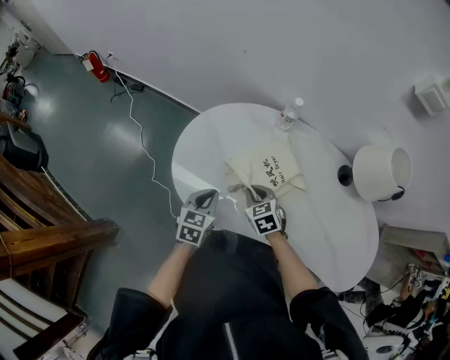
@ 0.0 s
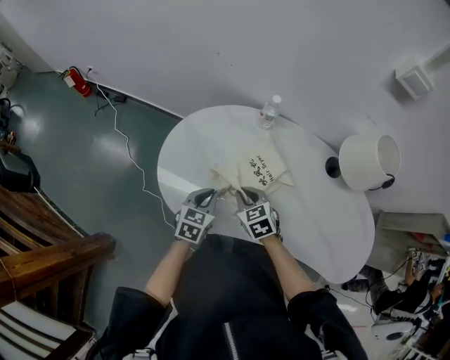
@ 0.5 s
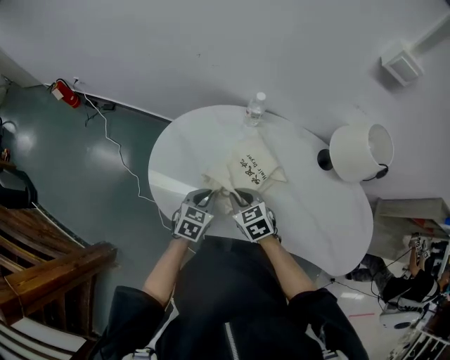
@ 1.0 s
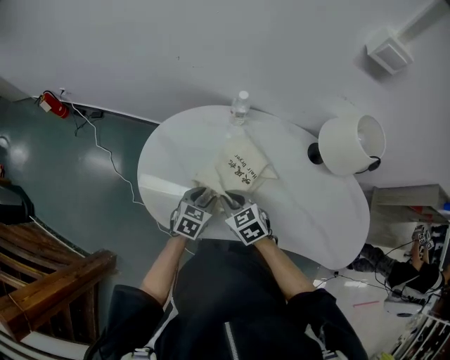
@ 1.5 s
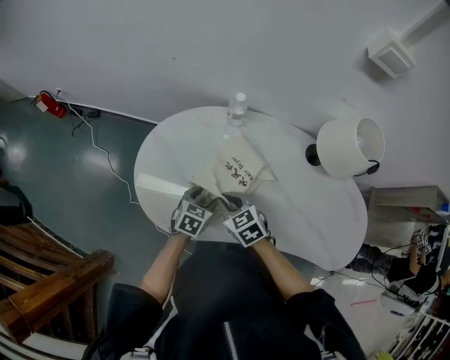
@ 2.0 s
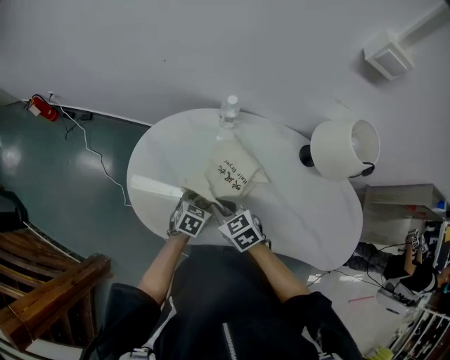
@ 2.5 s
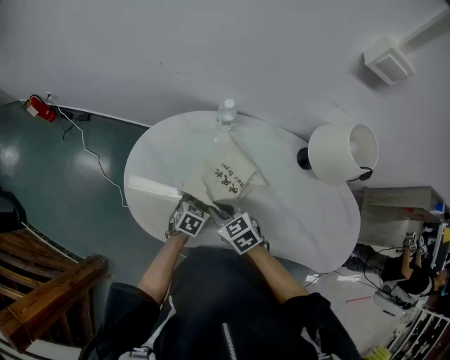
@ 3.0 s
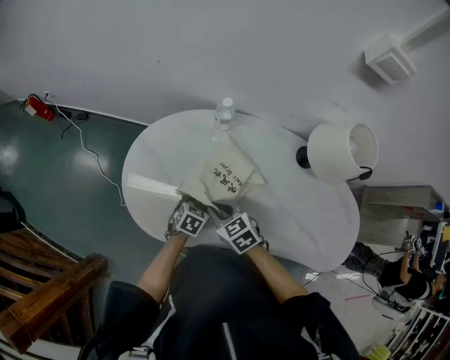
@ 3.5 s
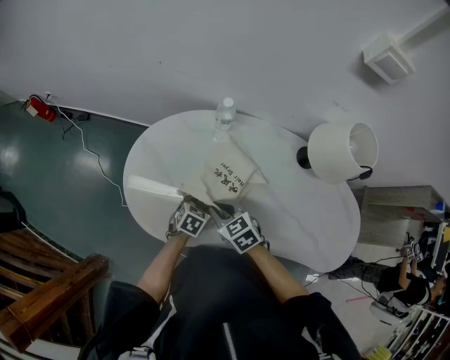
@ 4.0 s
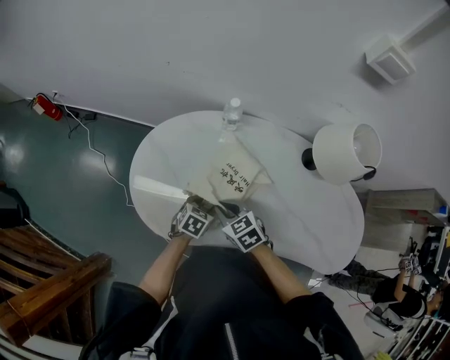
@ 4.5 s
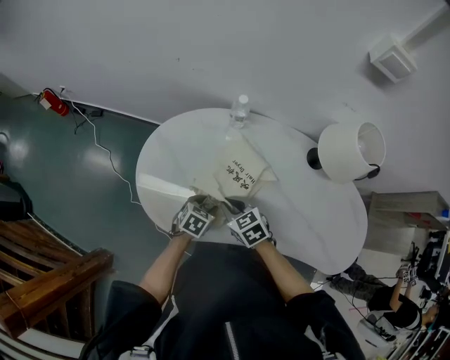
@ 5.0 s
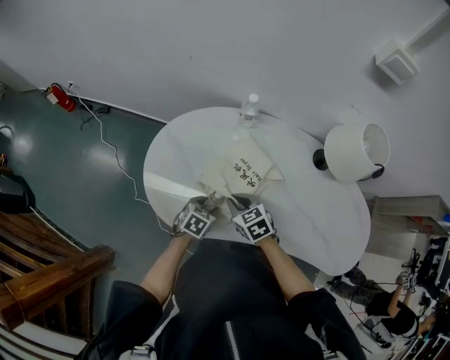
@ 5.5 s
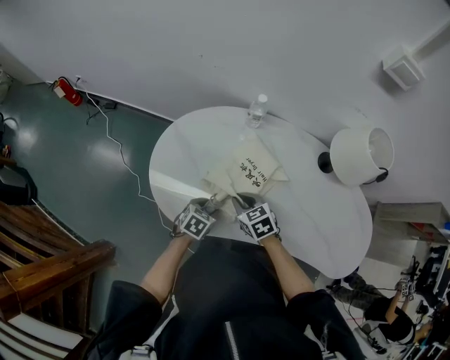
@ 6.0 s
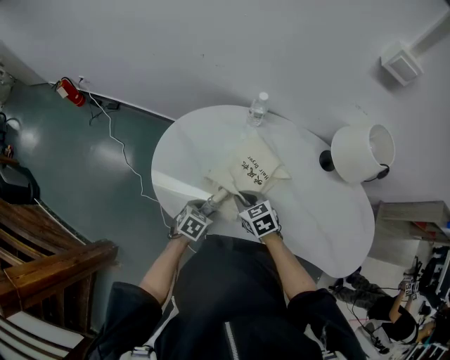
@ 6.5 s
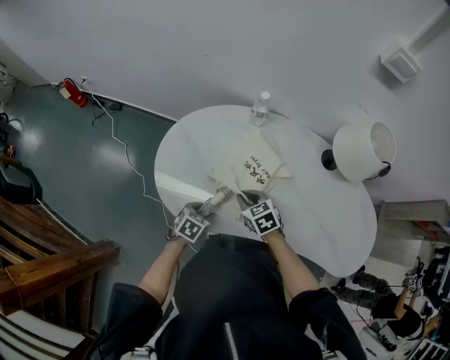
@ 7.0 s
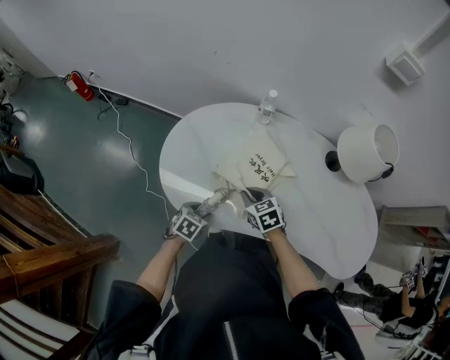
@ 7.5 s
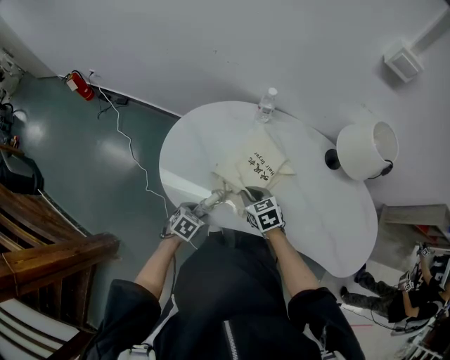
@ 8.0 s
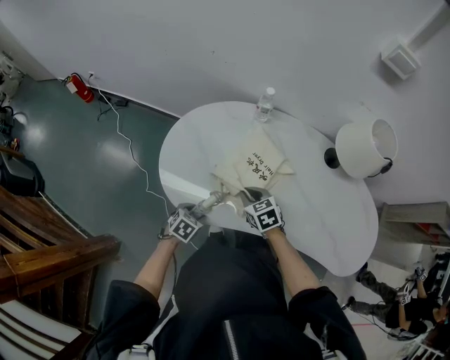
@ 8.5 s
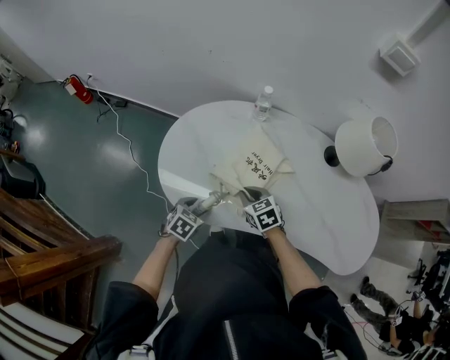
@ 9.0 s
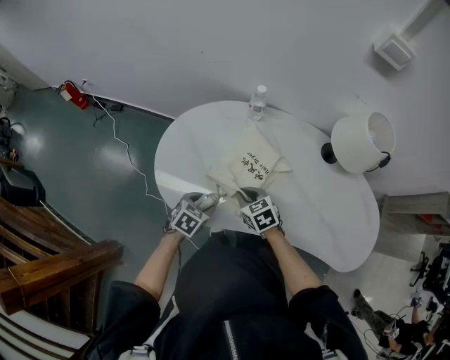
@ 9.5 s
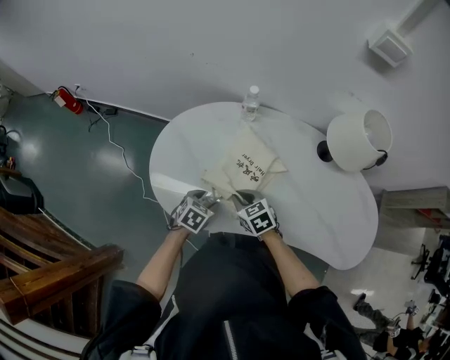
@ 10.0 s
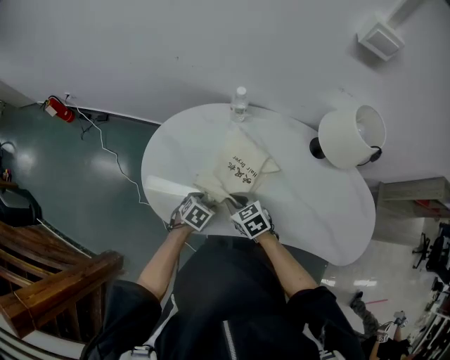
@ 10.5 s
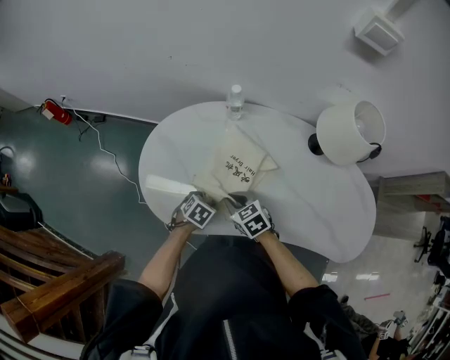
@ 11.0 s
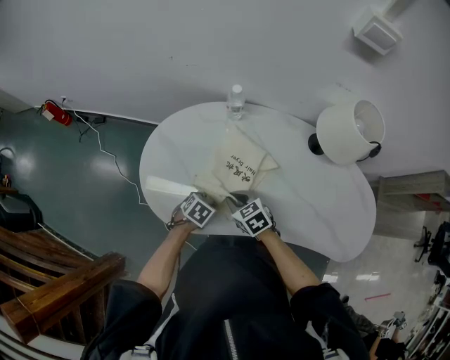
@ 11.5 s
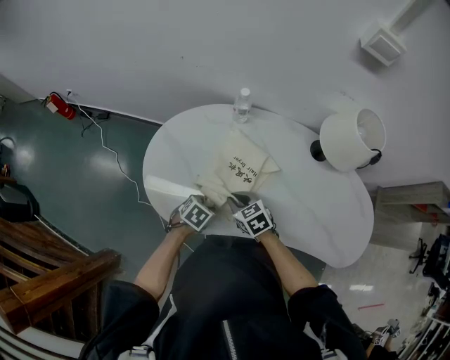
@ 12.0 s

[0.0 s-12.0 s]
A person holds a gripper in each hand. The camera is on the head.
0.0 to 2.0 s: The left gripper moves to the right and downward, approximately 15 cm, changes its angle by approximately 20 degrees, and opens.
2.0 to 4.0 s: The left gripper ends up about 5 cm from where it was.
4.0 to 6.0 s: The left gripper heads to the left and backward, covering about 10 cm.
6.0 to 8.0 s: The left gripper goes approximately 10 cm backward and to the left.
8.0 to 10.0 s: The left gripper goes roughly 10 cm forward and to the right.
10.0 to 12.0 s: The grippers move only a little.

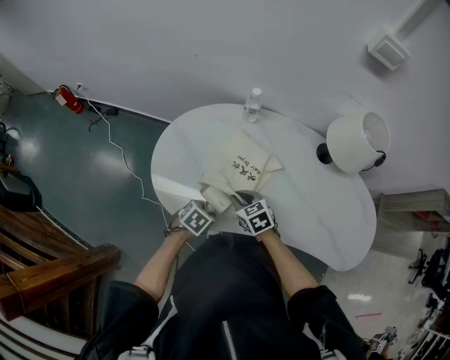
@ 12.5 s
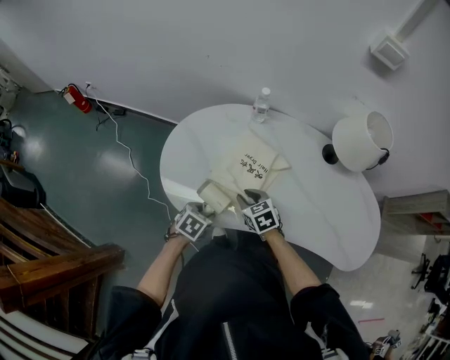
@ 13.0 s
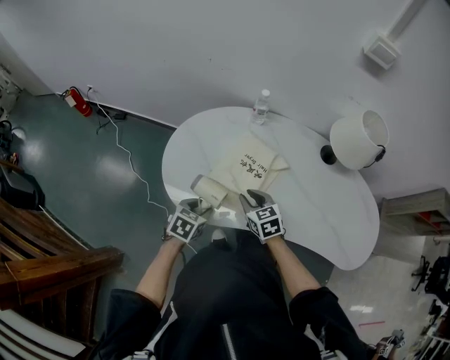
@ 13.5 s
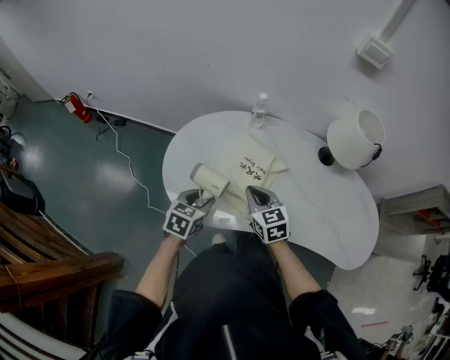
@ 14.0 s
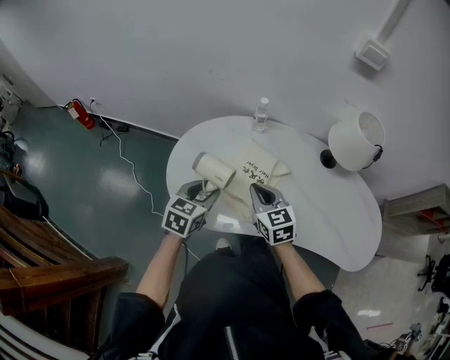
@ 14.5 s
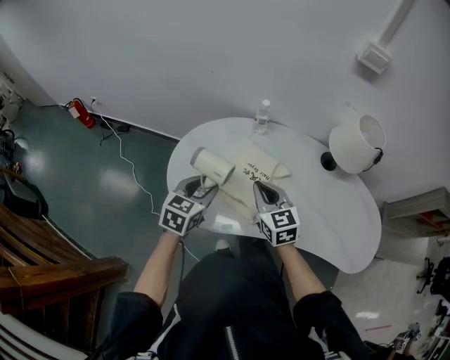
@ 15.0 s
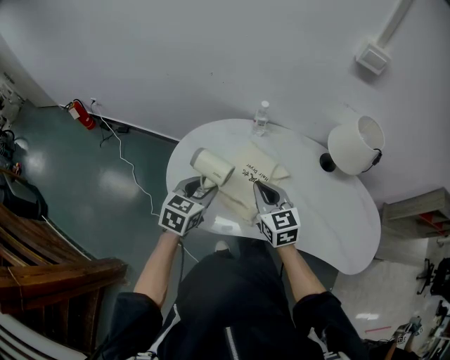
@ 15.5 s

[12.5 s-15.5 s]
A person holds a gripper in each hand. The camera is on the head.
12.5 to 14.0 s: Both grippers travel together upward, about 10 cm. The right gripper changes its angle by about 20 degrees. Meanwhile the left gripper turns by about 30 degrees.
14.0 to 15.5 s: The grippers both shift upward by about 5 cm.

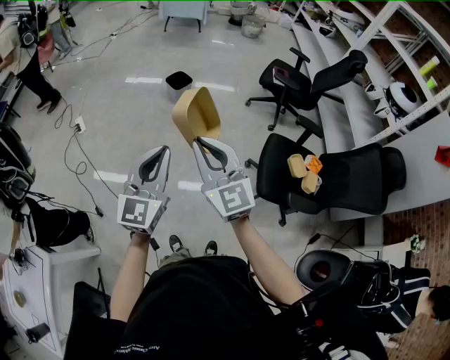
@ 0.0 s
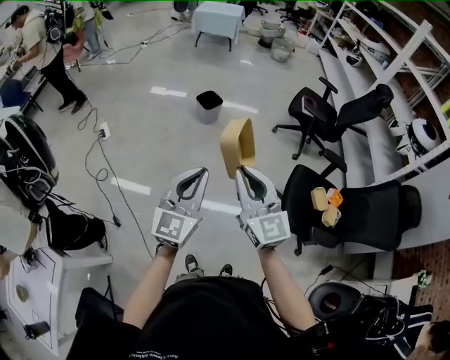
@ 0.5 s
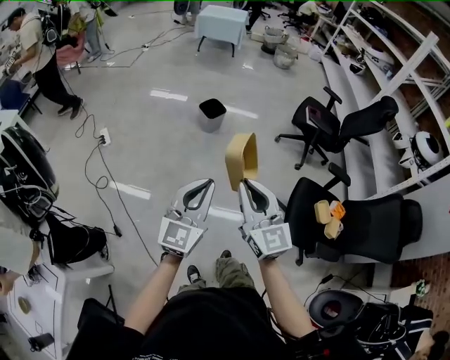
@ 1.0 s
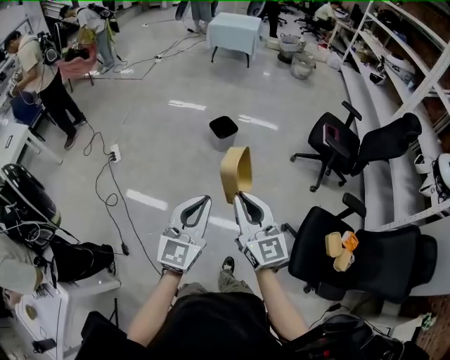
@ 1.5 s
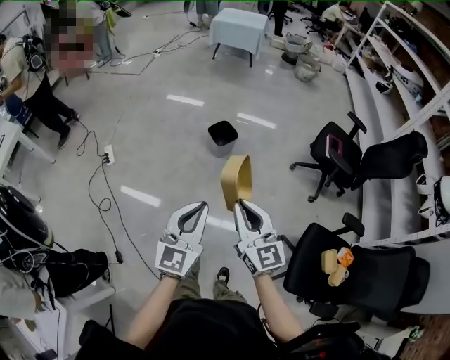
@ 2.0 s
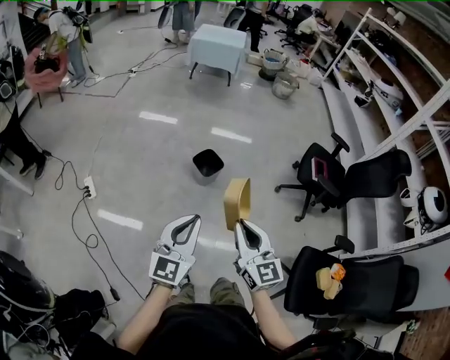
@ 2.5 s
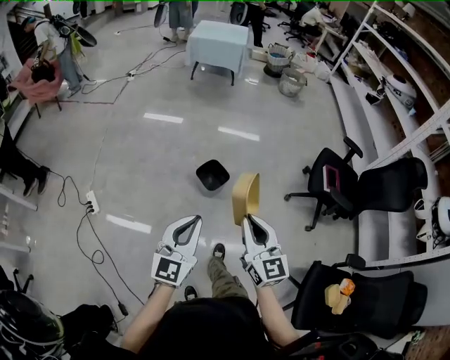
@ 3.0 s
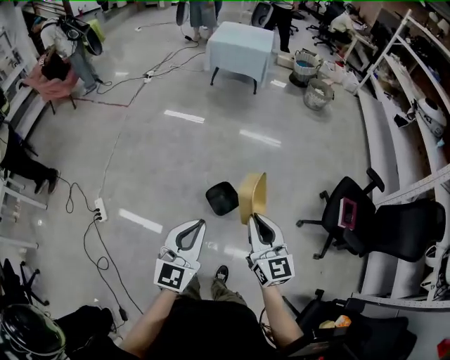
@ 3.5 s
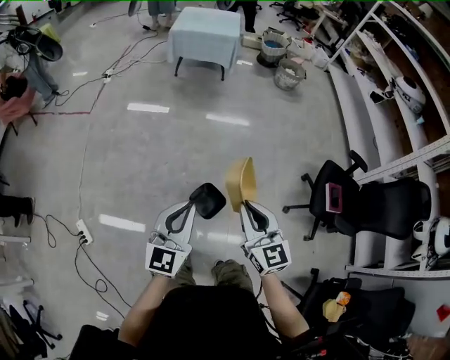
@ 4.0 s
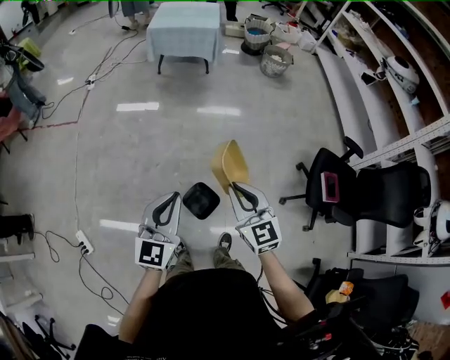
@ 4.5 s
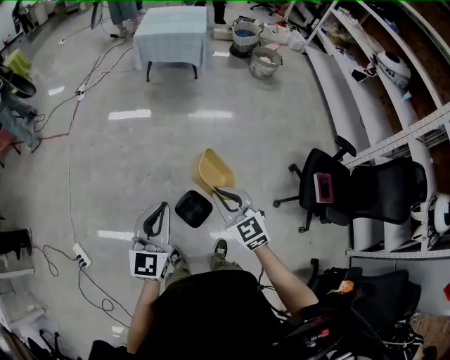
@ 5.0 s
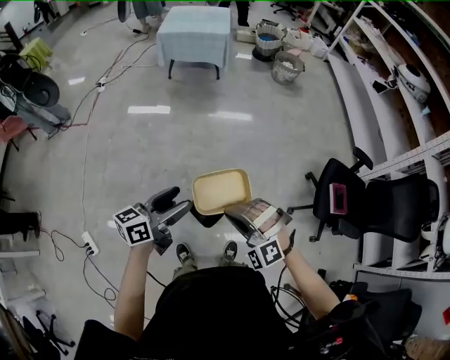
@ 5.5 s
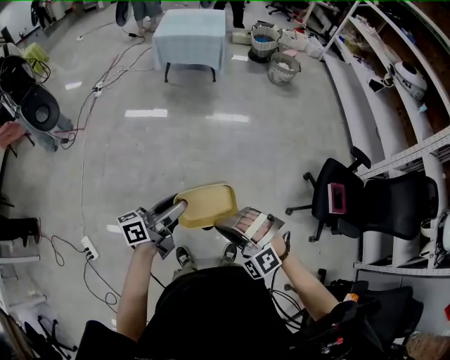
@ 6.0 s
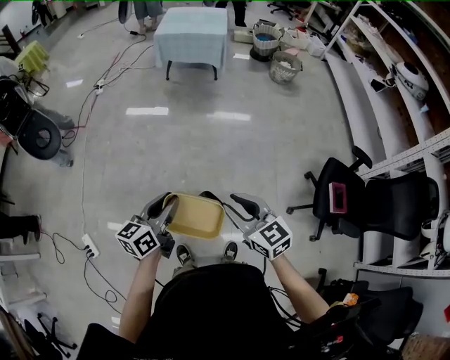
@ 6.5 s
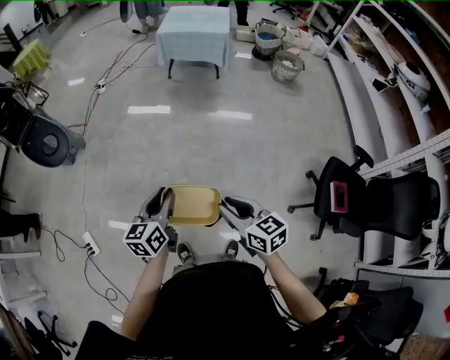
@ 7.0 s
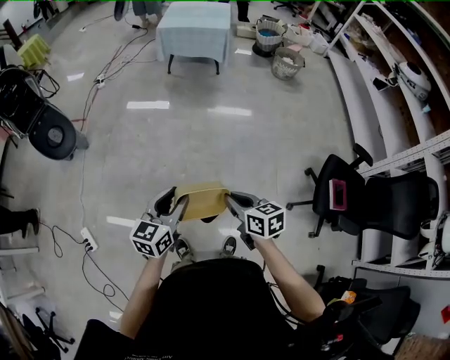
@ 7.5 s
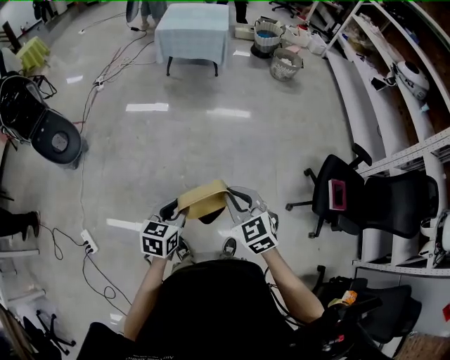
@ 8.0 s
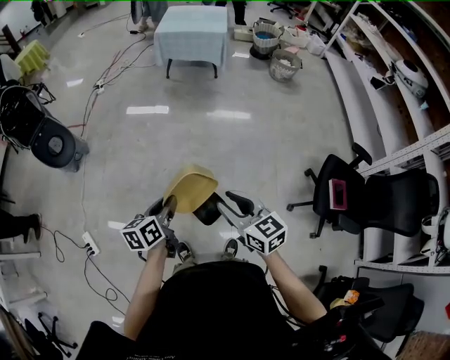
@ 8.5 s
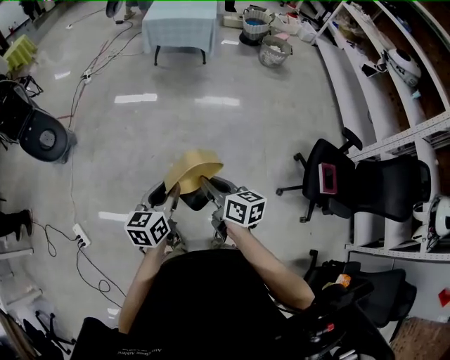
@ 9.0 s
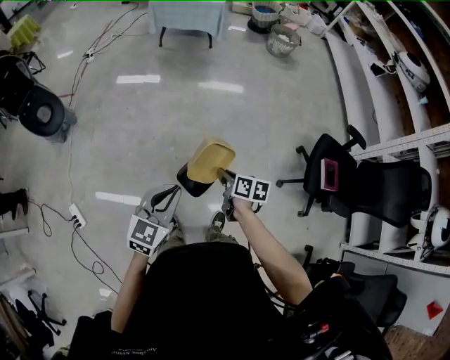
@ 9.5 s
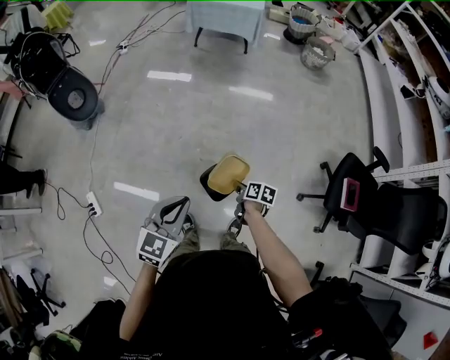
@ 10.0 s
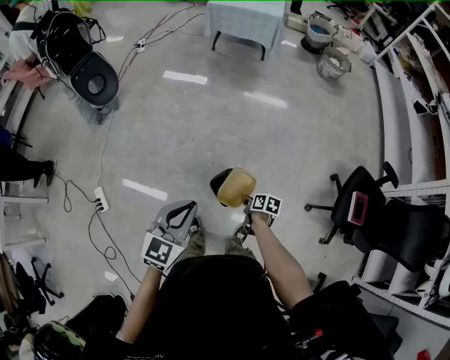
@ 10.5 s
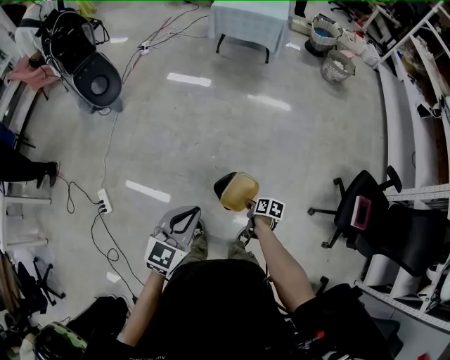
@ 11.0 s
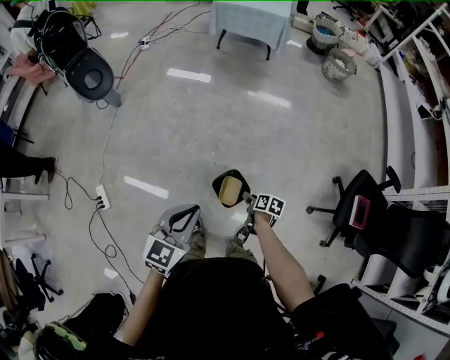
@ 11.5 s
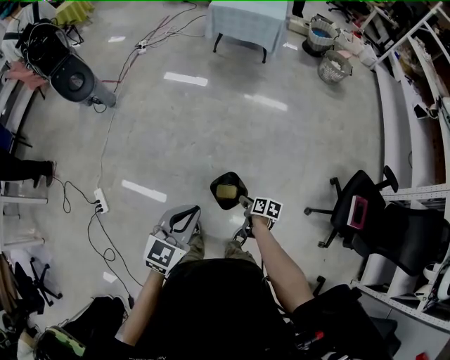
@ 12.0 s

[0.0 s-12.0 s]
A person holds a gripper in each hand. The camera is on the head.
0.0 to 2.0 s: Both grippers move forward, about 35 cm.
2.0 to 4.0 s: The two grippers travel together, forward, approximately 70 cm.
4.0 to 6.0 s: The right gripper moves downward, about 10 cm, reaches about 10 cm forward, then returns, and twists roughly 70 degrees counterclockwise, seen from behind. Meanwhile the left gripper moves forward and downward, some 15 cm, rolls counterclockwise, seen from behind, by some 50 degrees, and opens its fingers.
6.0 to 8.0 s: The right gripper shifts roughly 10 cm forward, rolls clockwise, seen from behind, by approximately 60 degrees, and opens, then closes again. Meanwhile the left gripper is displaced downward by about 10 cm, and tips its fingers downward by about 30 degrees.
8.0 to 10.0 s: The right gripper travels downward by about 30 cm, rolls clockwise, seen from behind, by roughly 70 degrees, and opens, then closes again. Meanwhile the left gripper shifts roughly 10 cm backward and upward, turns by about 20 degrees, and closes.
10.0 to 12.0 s: The right gripper opens up.
